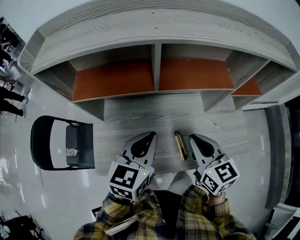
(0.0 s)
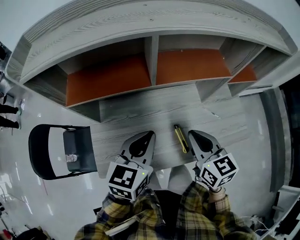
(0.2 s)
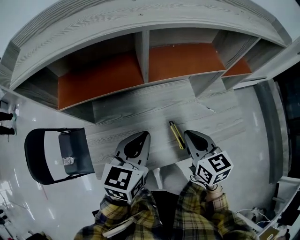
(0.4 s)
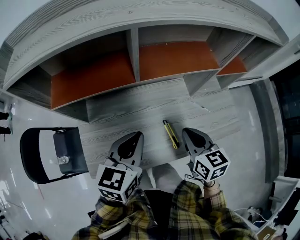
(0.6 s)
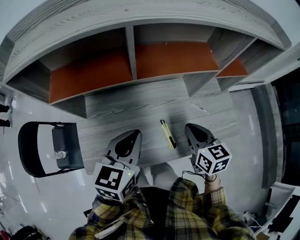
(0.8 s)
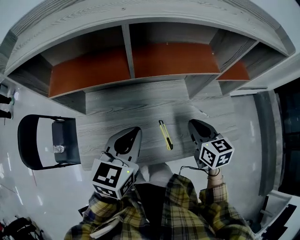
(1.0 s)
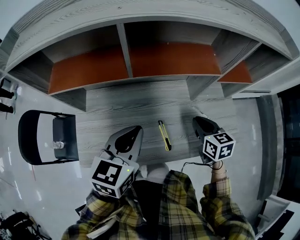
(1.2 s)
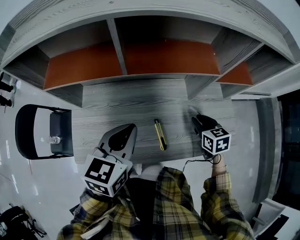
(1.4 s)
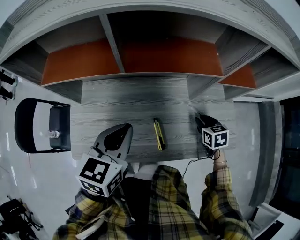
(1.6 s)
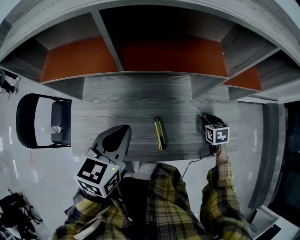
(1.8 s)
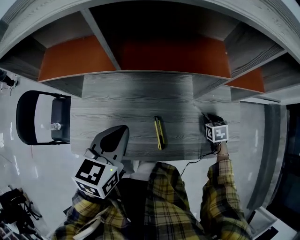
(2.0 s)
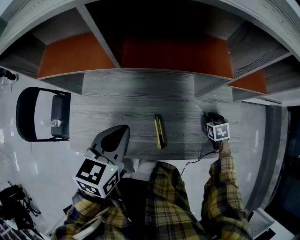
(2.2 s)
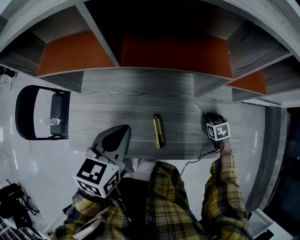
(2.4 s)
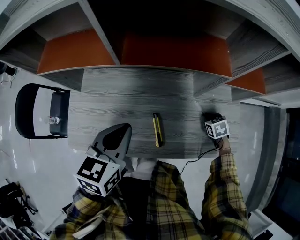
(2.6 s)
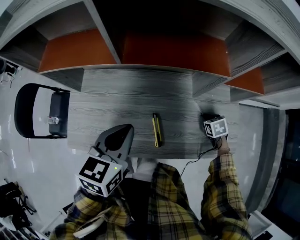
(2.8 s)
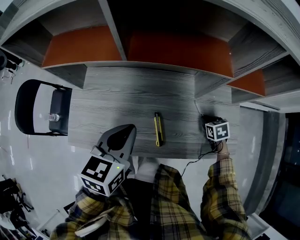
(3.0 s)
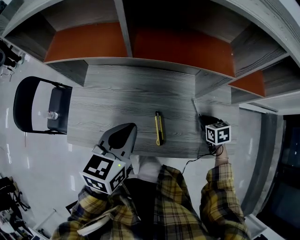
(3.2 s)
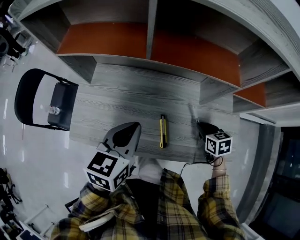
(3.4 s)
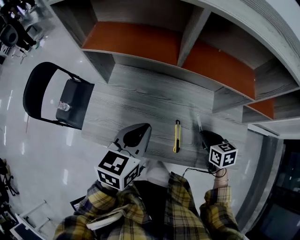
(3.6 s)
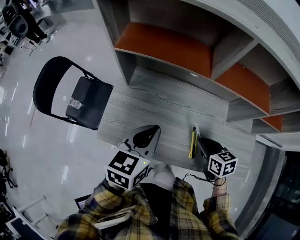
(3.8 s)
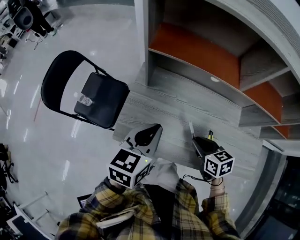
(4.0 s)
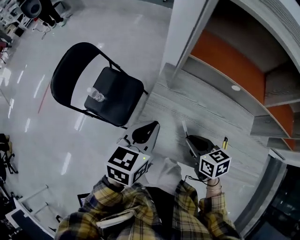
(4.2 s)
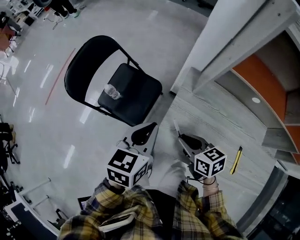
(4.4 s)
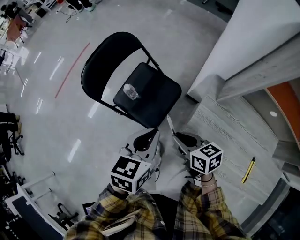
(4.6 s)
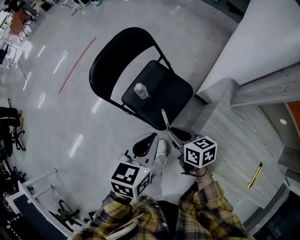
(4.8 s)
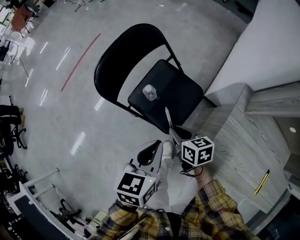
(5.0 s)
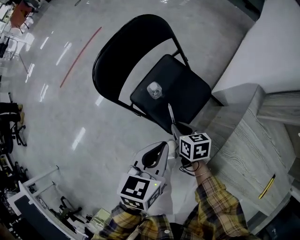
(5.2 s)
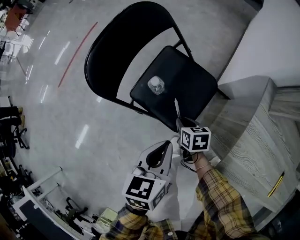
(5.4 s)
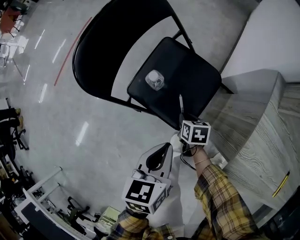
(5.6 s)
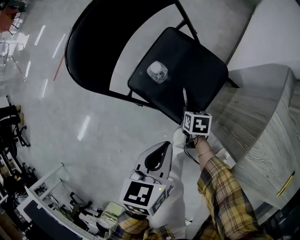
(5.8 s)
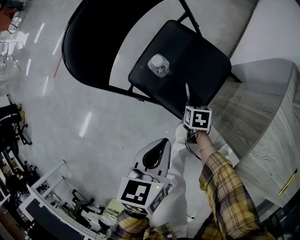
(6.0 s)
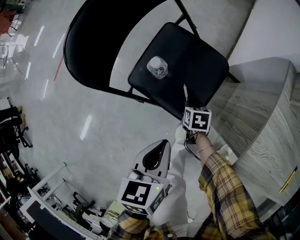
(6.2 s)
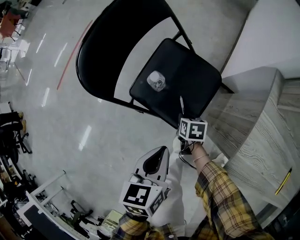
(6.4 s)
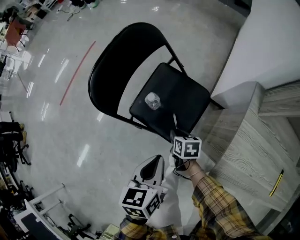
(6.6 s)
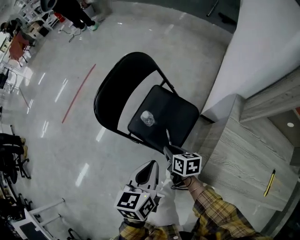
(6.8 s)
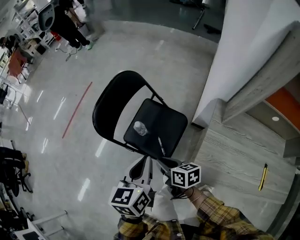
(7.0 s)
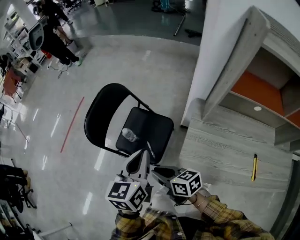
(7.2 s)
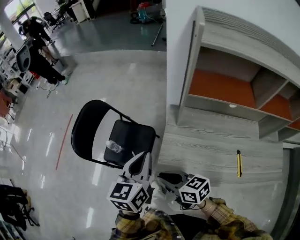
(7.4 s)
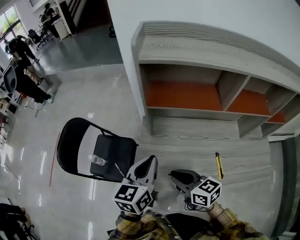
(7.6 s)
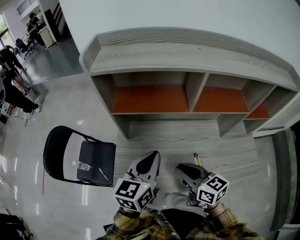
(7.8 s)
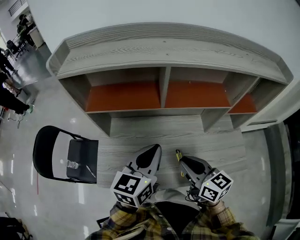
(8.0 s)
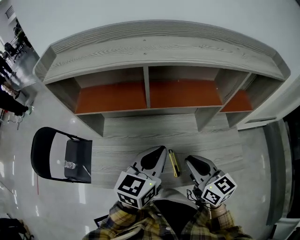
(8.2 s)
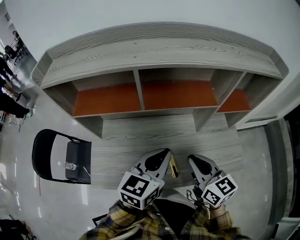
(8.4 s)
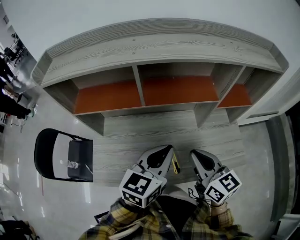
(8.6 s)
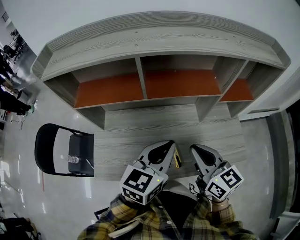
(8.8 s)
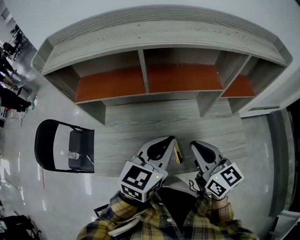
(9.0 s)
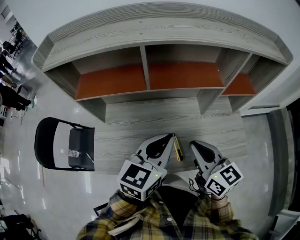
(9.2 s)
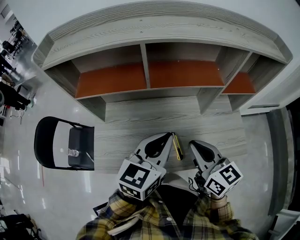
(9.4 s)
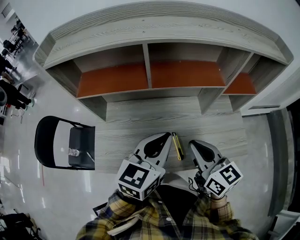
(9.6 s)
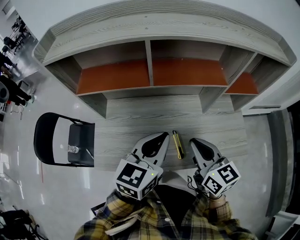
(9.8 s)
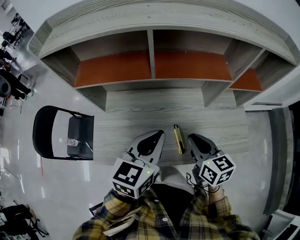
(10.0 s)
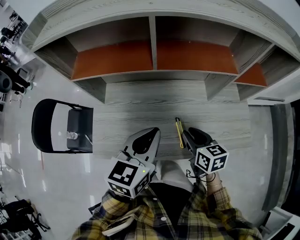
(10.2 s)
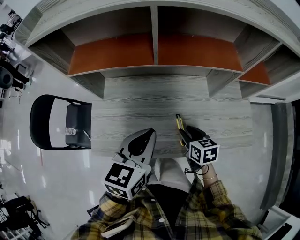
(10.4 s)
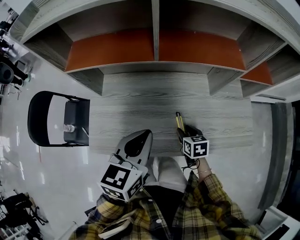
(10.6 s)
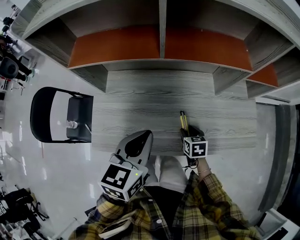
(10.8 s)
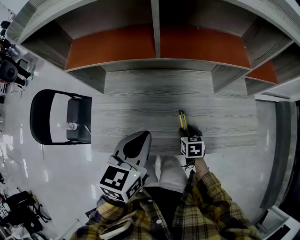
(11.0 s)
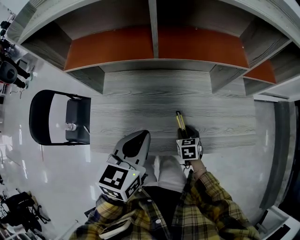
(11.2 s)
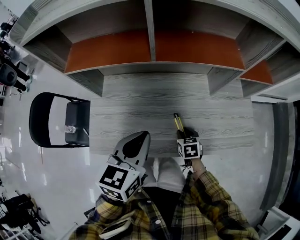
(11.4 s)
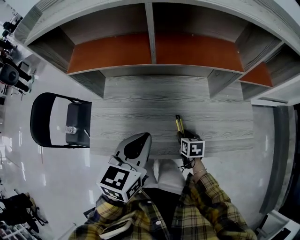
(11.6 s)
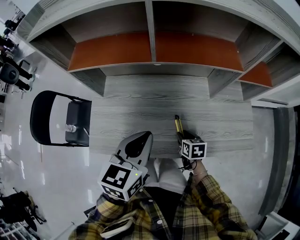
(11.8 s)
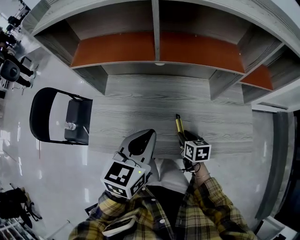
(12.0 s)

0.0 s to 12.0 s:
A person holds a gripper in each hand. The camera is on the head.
0.0 to 1.6 s: The right gripper is displaced downward and to the right by approximately 30 cm, and angles its fingers downward, by some 30 degrees.
1.6 to 3.0 s: The right gripper heads downward, covering about 10 cm.
3.0 to 4.4 s: Both grippers are carried approximately 50 cm. The left gripper turns by approximately 20 degrees. Meanwhile the right gripper changes its angle by approximately 40 degrees.
4.4 to 6.0 s: Both grippers move downward and to the left, about 40 cm. The left gripper changes its angle by approximately 30 degrees, while the right gripper angles its fingers downward, by some 30 degrees.
6.0 to 7.6 s: The right gripper shifts some 50 cm upward, and tips its fingers upward by approximately 50 degrees. Meanwhile the left gripper ends up roughly 50 cm from where it was, and rotates about 40 degrees.
7.6 to 9.0 s: The left gripper changes place by about 35 cm, and rotates approximately 30 degrees; the right gripper ends up some 35 cm from where it was, and changes its angle by some 30 degrees.
9.0 to 10.4 s: The left gripper goes approximately 10 cm to the left and downward. Meanwhile the right gripper goes roughly 25 cm downward, tilts its fingers roughly 30 degrees downward, and opens up.
10.4 to 12.0 s: The right gripper travels downward by some 5 cm.

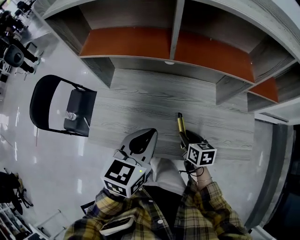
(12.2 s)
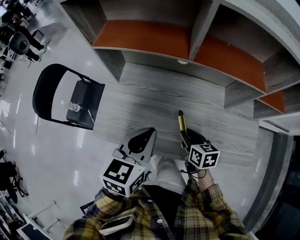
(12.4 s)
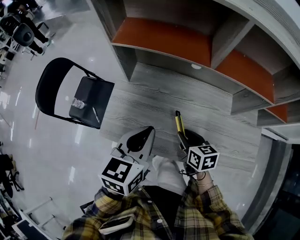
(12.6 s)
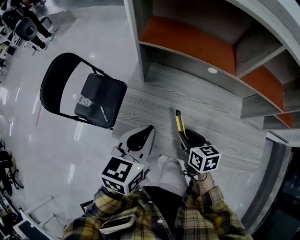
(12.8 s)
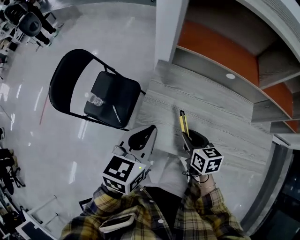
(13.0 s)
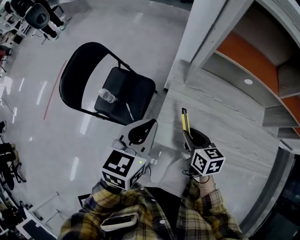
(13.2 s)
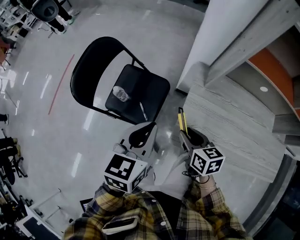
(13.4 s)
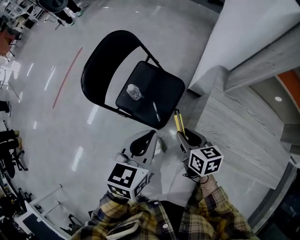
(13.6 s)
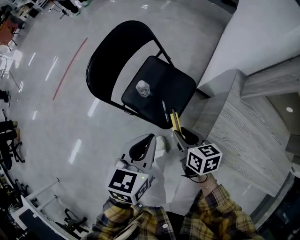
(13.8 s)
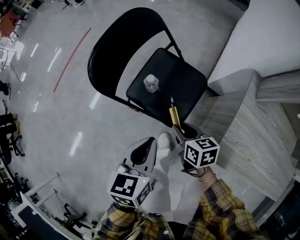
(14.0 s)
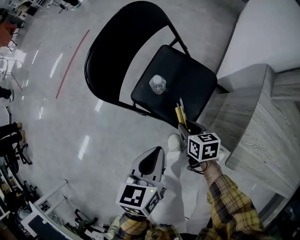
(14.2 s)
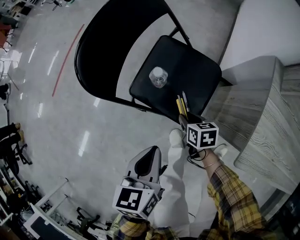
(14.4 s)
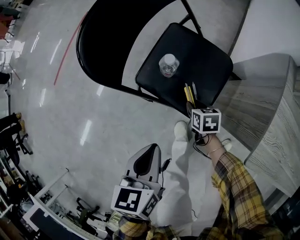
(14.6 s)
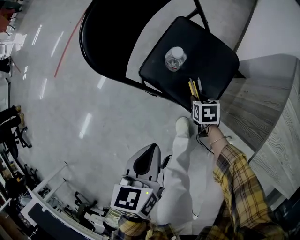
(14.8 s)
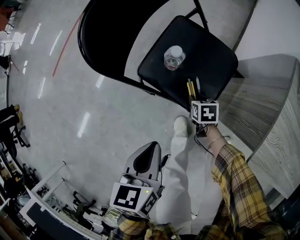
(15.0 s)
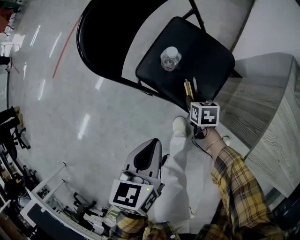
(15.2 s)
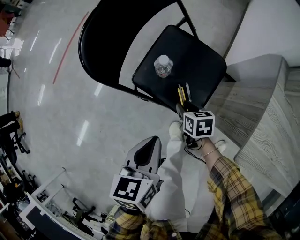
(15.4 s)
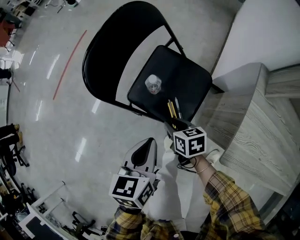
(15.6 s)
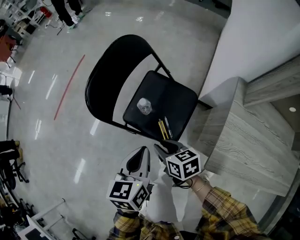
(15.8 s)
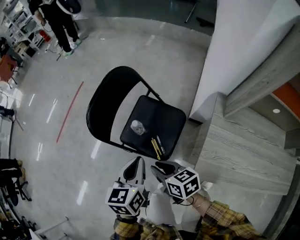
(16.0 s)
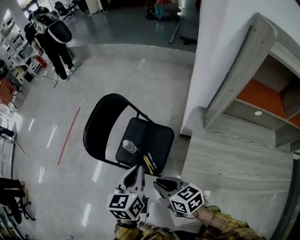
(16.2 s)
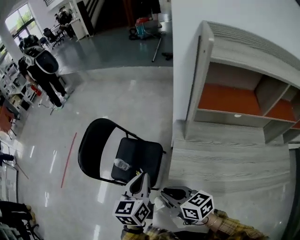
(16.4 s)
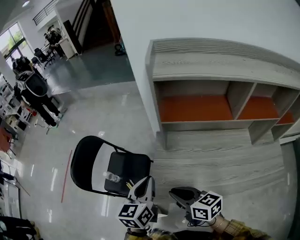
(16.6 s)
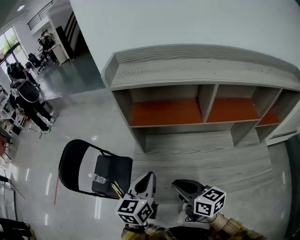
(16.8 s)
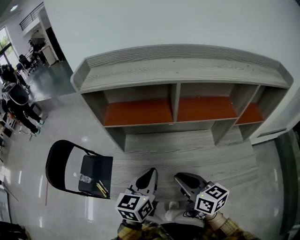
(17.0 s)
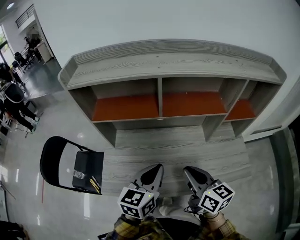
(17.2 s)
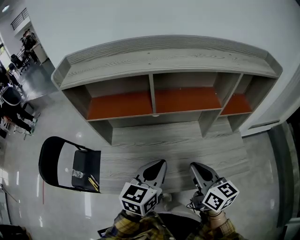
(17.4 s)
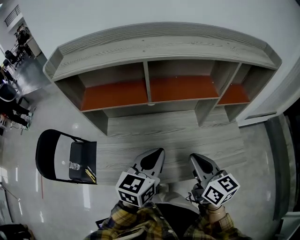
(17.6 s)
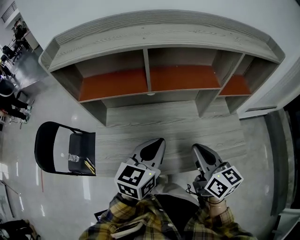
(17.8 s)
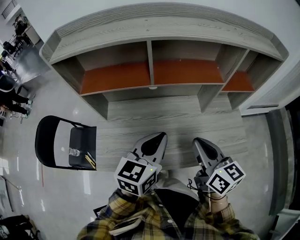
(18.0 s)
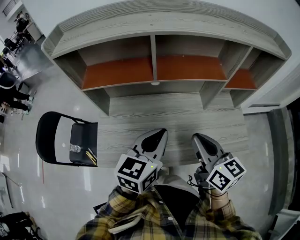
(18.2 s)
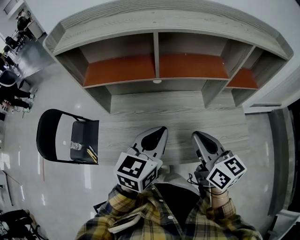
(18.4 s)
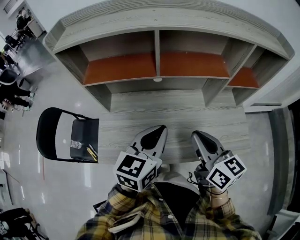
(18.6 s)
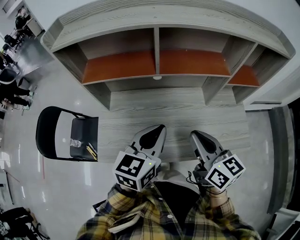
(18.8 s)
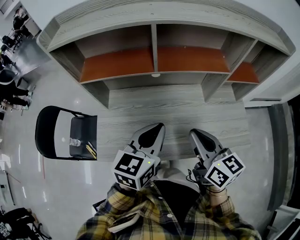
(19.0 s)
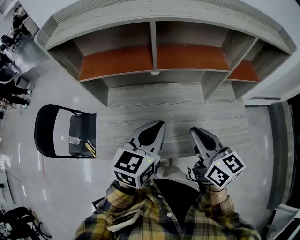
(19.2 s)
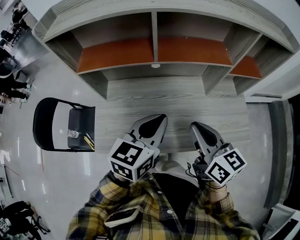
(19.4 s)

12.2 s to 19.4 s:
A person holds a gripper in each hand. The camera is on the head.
12.2 to 13.6 s: Both grippers are carried to the left, some 50 cm. The right gripper rotates about 20 degrees. Meanwhile the left gripper changes its angle by approximately 20 degrees.
13.6 to 15.0 s: The left gripper shifts about 30 cm downward and to the left, and swivels roughly 30 degrees; the right gripper moves downward, about 40 cm, and swivels roughly 30 degrees.
15.0 to 16.6 s: The right gripper is displaced upward and to the right by roughly 60 cm, and angles its fingers upward, by approximately 50 degrees, while the left gripper shifts some 50 cm to the right and upward, and rotates about 40 degrees.
16.6 to 18.0 s: The left gripper ends up roughly 35 cm from where it was, and rotates some 30 degrees. Meanwhile the right gripper shifts by approximately 40 cm, and swivels approximately 40 degrees.
18.0 to 19.4 s: The grippers stay close to where they were, moving slightly.

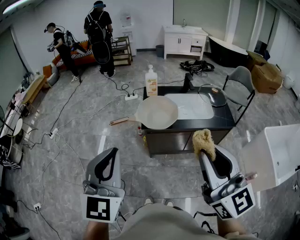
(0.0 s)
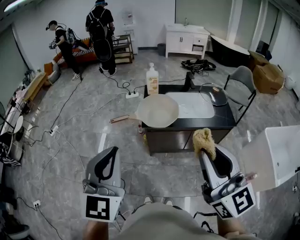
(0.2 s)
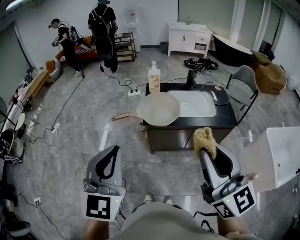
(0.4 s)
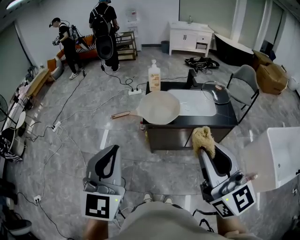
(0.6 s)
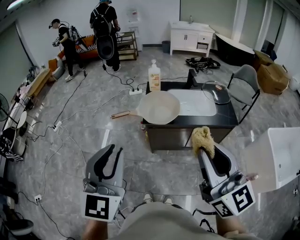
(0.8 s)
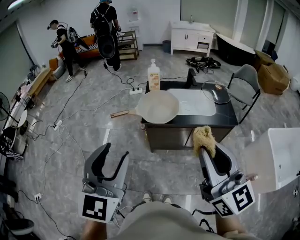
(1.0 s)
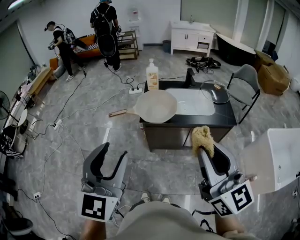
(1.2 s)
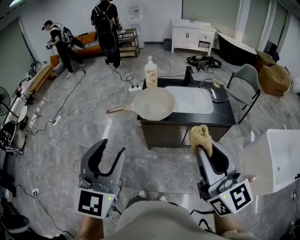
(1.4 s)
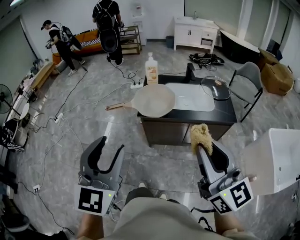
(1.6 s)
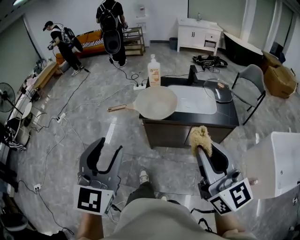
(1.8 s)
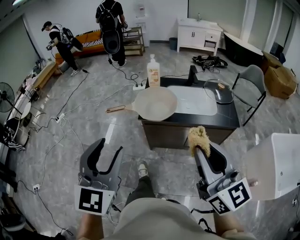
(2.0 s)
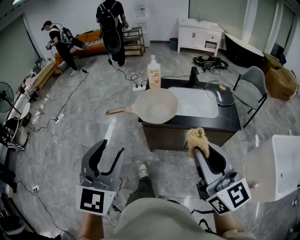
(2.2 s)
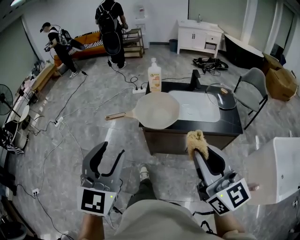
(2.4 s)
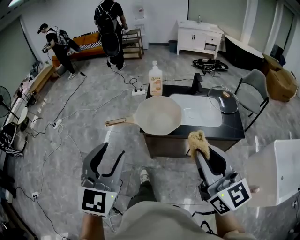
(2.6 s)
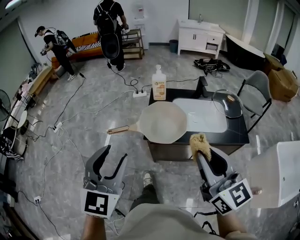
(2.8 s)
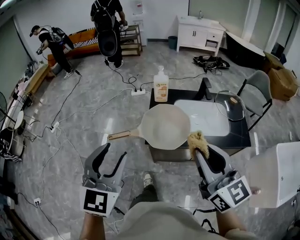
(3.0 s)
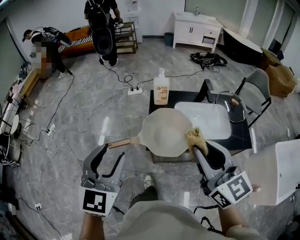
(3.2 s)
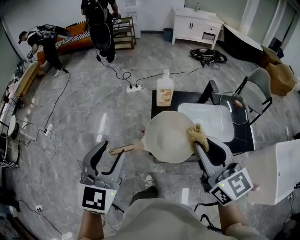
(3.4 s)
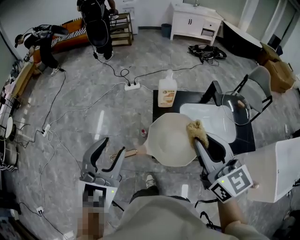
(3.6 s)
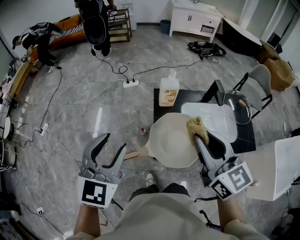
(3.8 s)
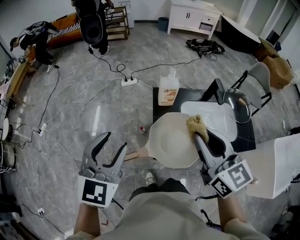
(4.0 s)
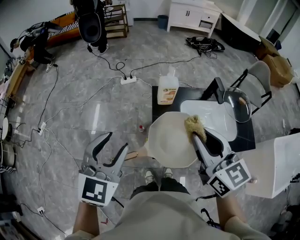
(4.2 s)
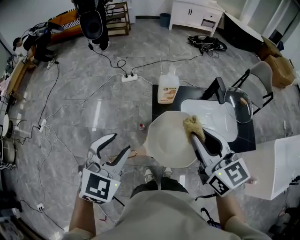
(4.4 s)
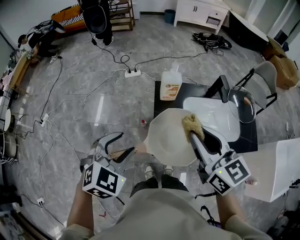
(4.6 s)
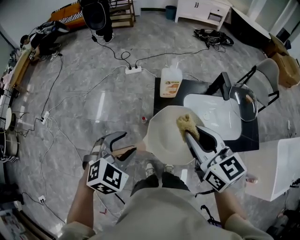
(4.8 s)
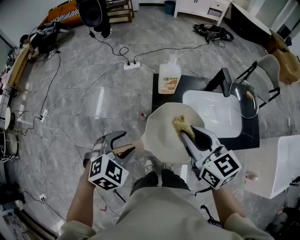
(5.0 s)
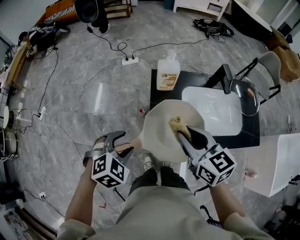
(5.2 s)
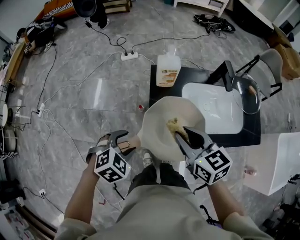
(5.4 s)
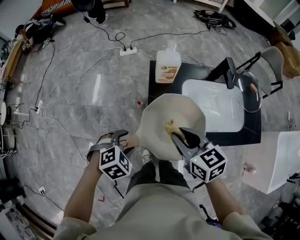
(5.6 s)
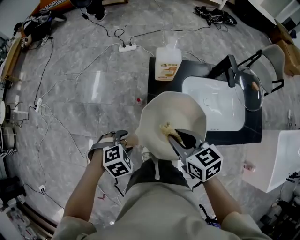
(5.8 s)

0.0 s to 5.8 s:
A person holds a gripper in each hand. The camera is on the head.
0.0 to 1.4 s: The grippers both shift to the right by about 5 cm. The left gripper opens up.
1.4 to 2.8 s: The grippers both shift forward by about 15 cm.
2.8 to 4.4 s: Both grippers travel together forward, some 30 cm. The left gripper turns by about 30 degrees.
4.4 to 5.8 s: Both grippers move downward, roughly 25 cm. The left gripper points its fingers about 50 degrees further downward. The right gripper rotates some 30 degrees.
